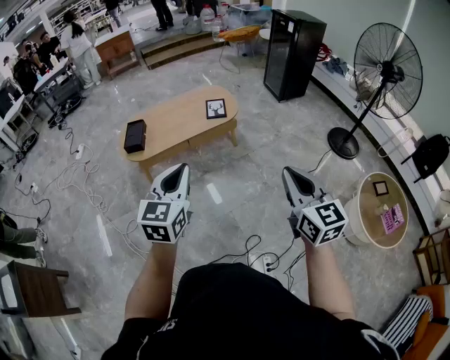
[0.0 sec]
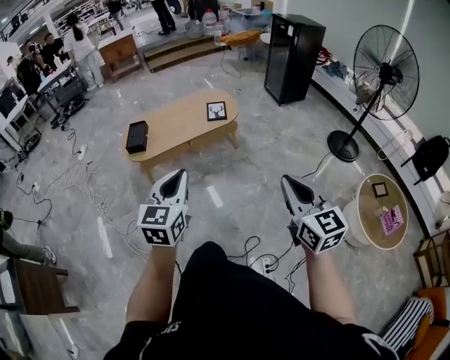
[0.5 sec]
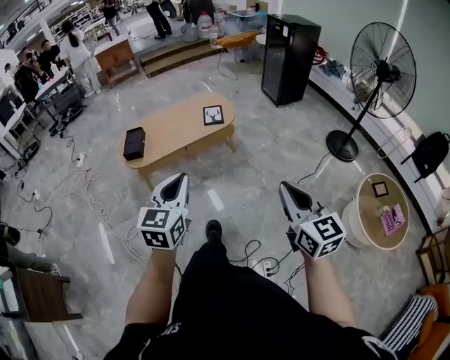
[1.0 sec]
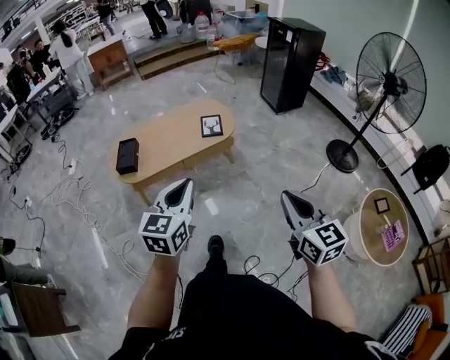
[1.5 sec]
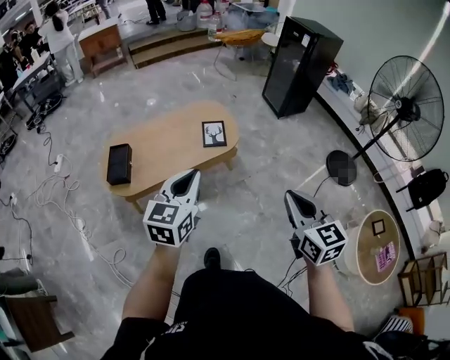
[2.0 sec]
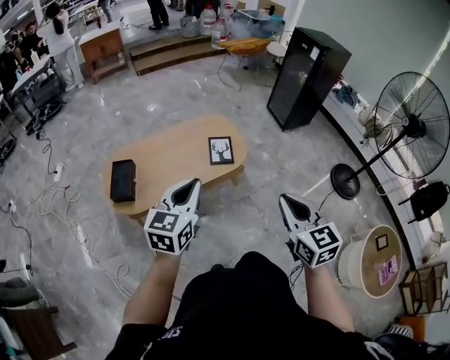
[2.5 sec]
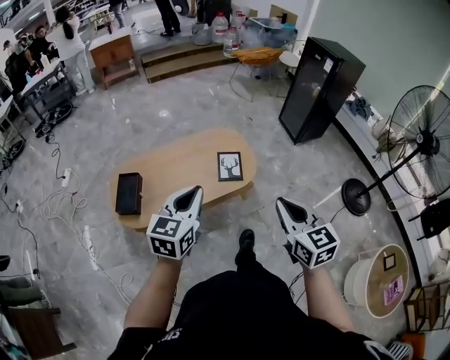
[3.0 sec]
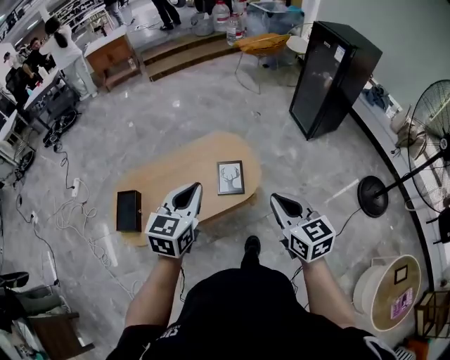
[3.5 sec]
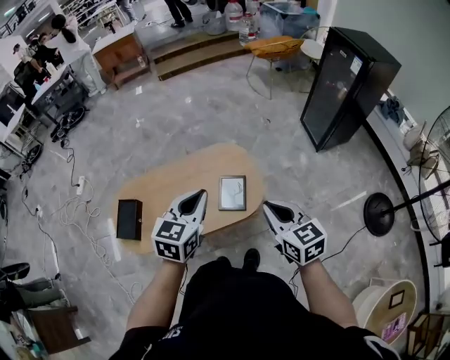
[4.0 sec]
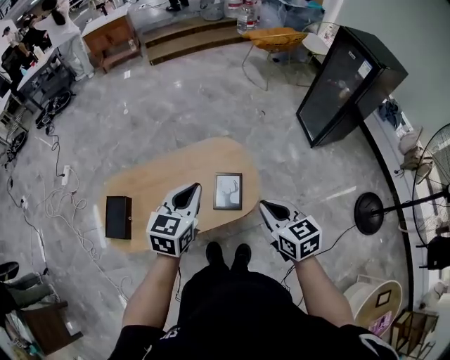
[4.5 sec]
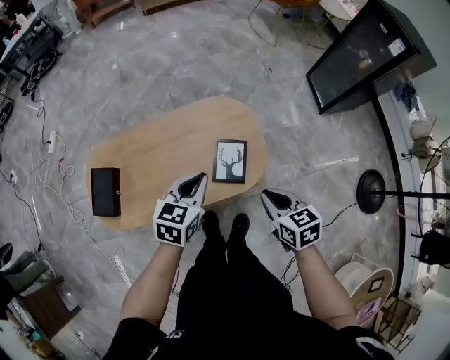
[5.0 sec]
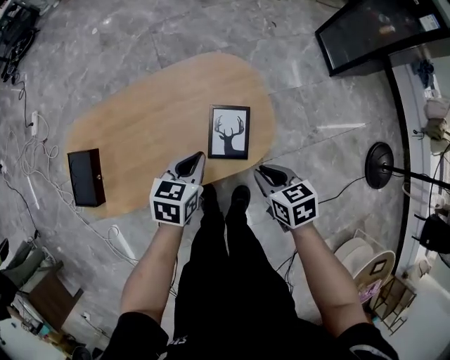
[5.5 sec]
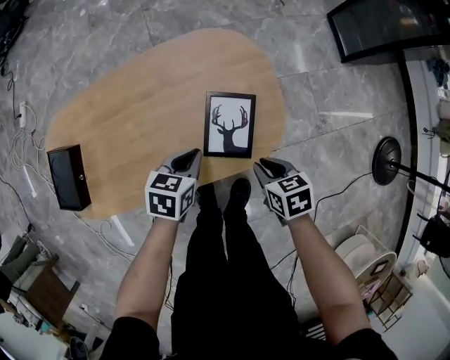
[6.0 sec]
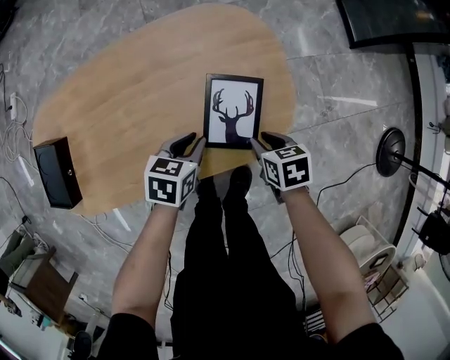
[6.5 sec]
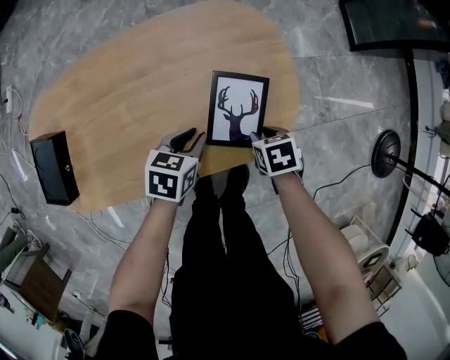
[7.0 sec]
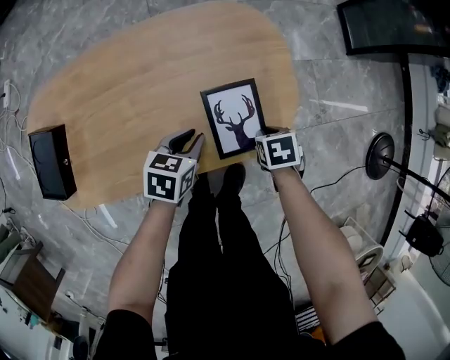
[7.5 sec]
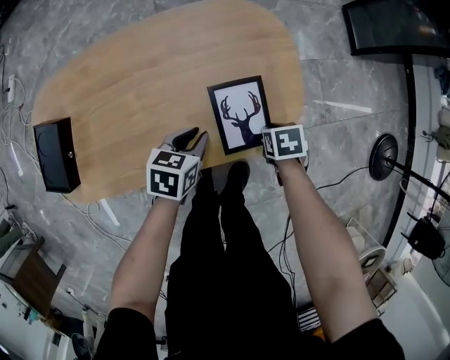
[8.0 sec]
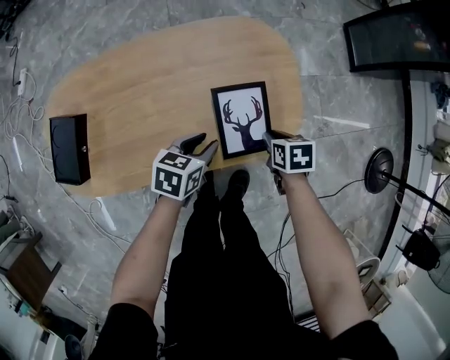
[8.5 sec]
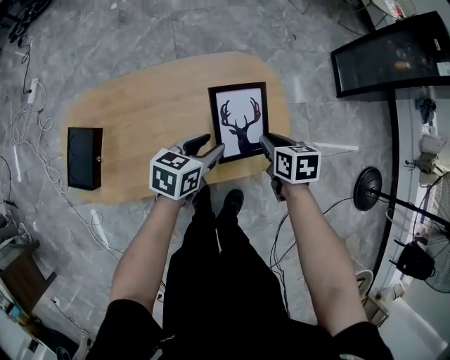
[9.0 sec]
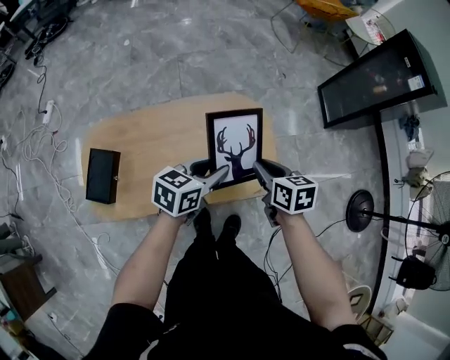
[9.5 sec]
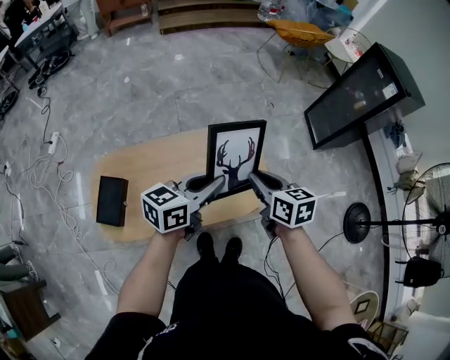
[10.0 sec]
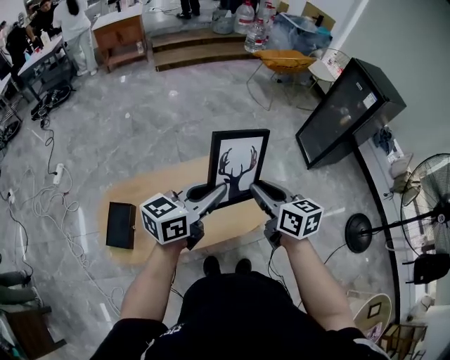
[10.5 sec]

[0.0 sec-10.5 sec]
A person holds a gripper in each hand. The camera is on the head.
0.0 sec to 2.0 sec: Both grippers travel together forward, some 30 cm.
2.0 sec to 4.0 sec: The two grippers travel together, forward, about 40 cm. The right gripper turns by some 20 degrees.
4.0 sec to 6.5 sec: The two grippers go approximately 50 cm downward. The right gripper points its fingers some 40 degrees further downward, and opens; the left gripper changes its angle by some 40 degrees.
6.5 sec to 8.5 sec: The left gripper moves upward, approximately 5 cm.
8.5 sec to 10.5 sec: The two grippers go roughly 50 cm upward. The left gripper tilts its fingers about 40 degrees upward, and closes, while the right gripper angles its fingers upward, by about 50 degrees.

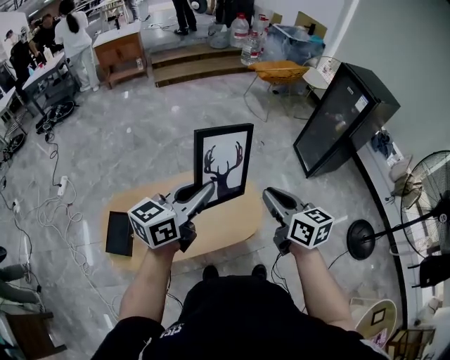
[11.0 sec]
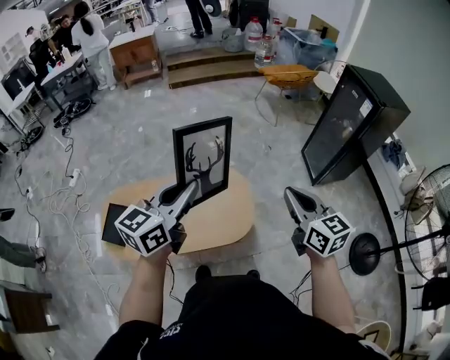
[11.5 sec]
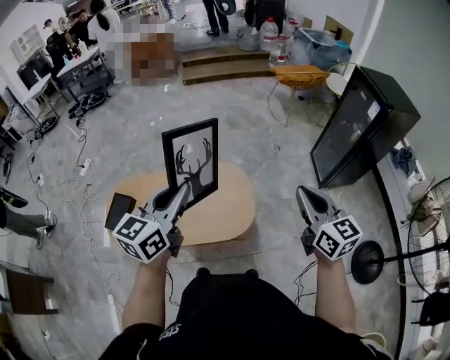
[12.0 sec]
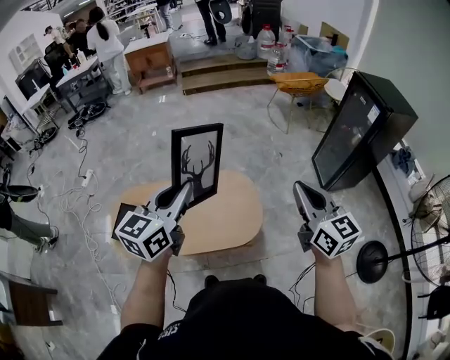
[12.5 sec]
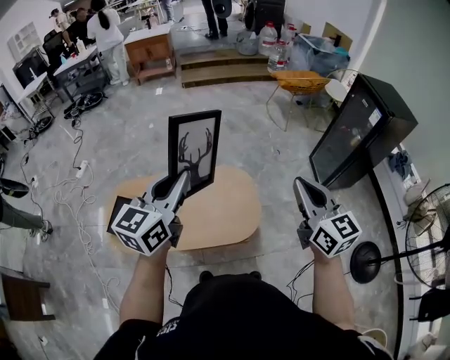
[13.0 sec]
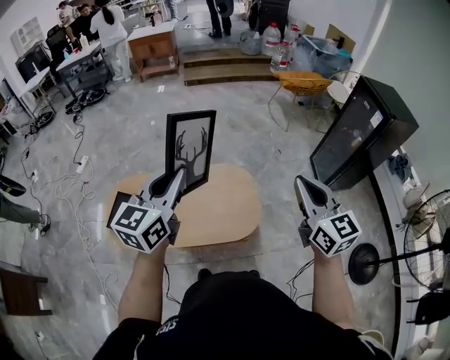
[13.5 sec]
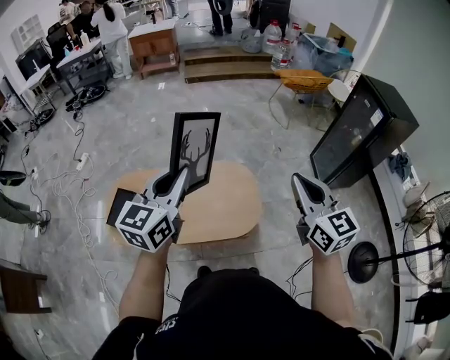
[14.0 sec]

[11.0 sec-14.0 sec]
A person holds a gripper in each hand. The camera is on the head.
11.0 sec to 12.5 sec: The right gripper heads to the right and upward, covering approximately 20 cm, and swivels roughly 20 degrees. Meanwhile the left gripper shifts some 5 cm to the right, and swivels approximately 30 degrees.
12.5 sec to 14.0 sec: The right gripper travels to the left by some 5 cm. The left gripper changes place by some 5 cm.

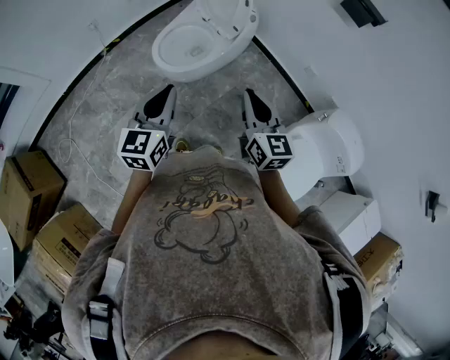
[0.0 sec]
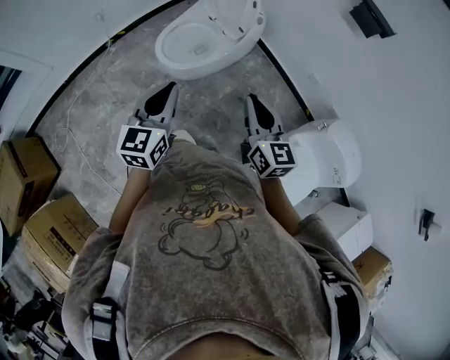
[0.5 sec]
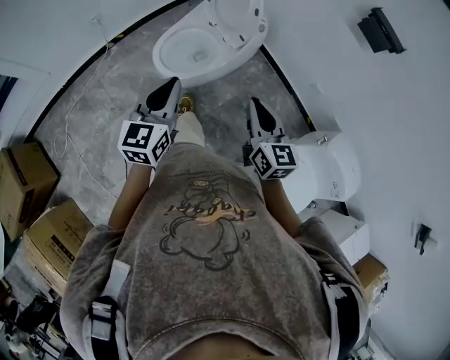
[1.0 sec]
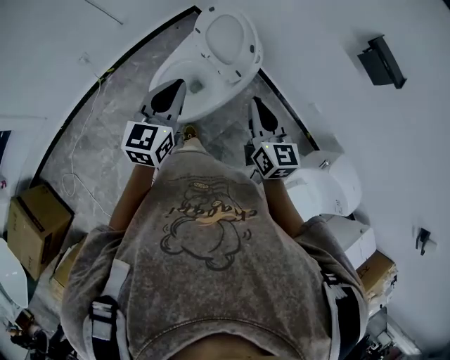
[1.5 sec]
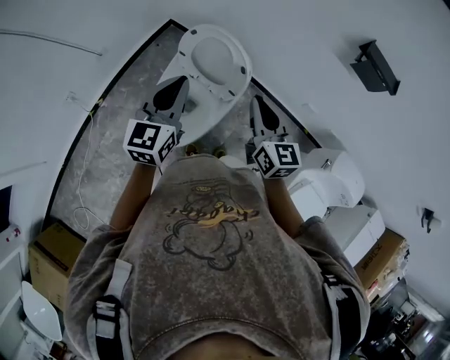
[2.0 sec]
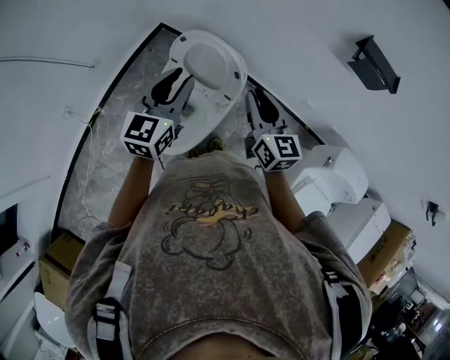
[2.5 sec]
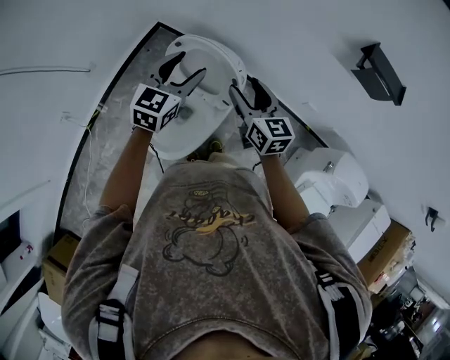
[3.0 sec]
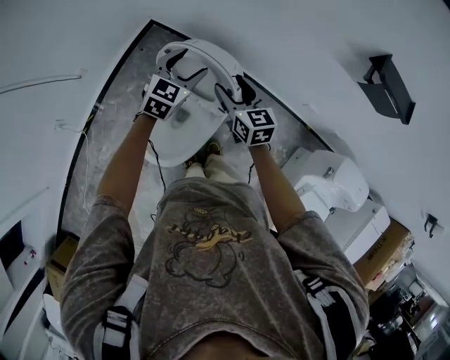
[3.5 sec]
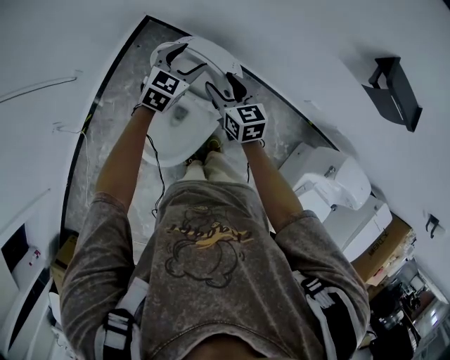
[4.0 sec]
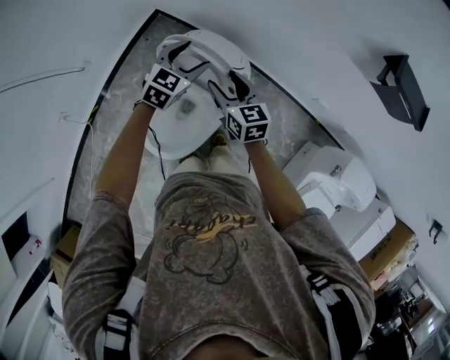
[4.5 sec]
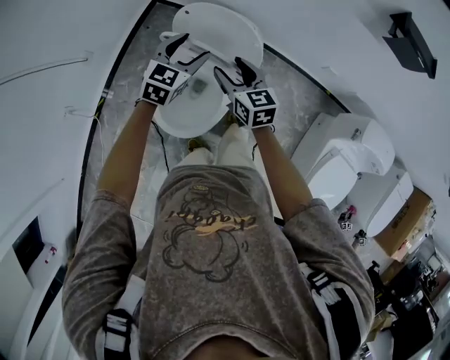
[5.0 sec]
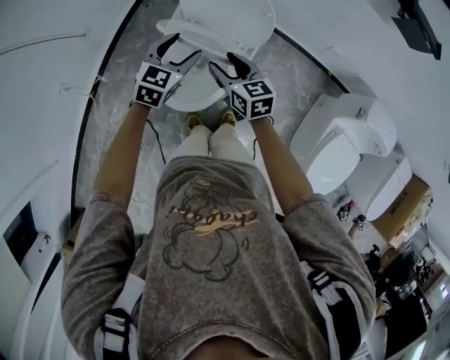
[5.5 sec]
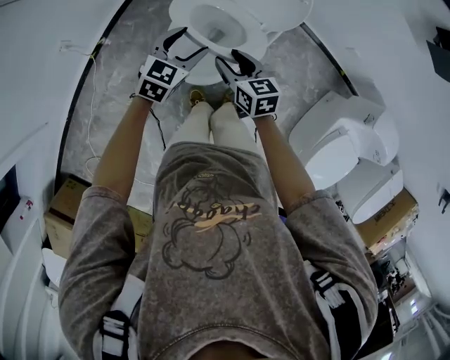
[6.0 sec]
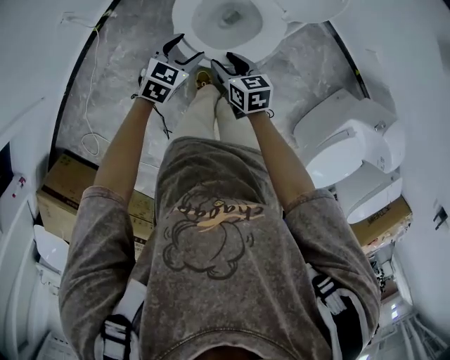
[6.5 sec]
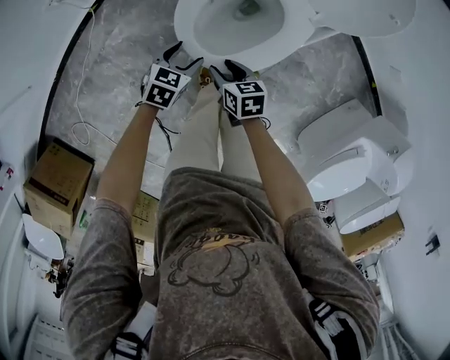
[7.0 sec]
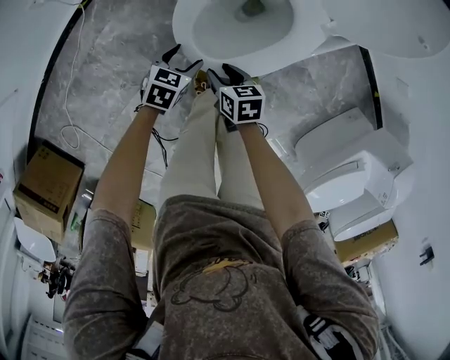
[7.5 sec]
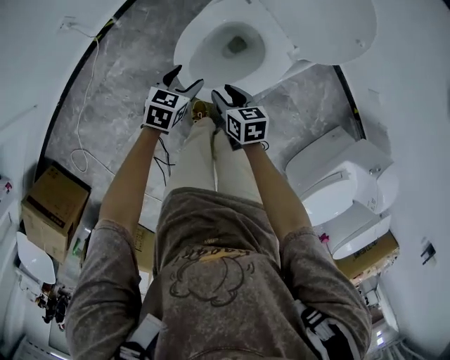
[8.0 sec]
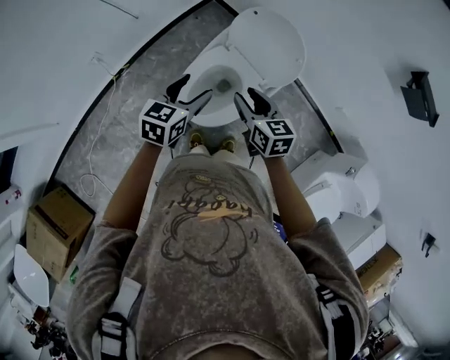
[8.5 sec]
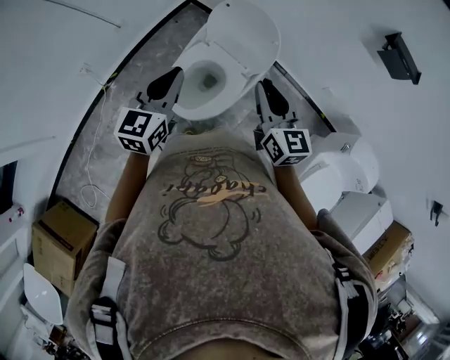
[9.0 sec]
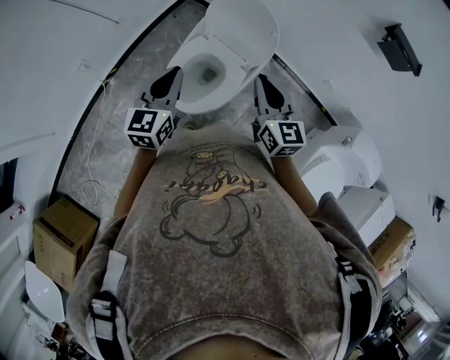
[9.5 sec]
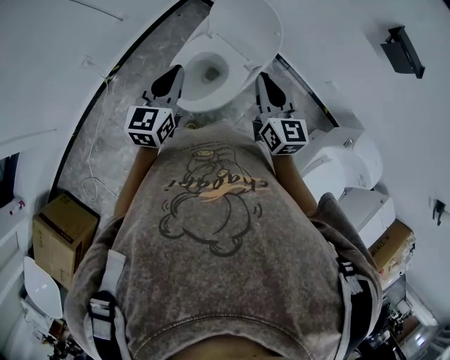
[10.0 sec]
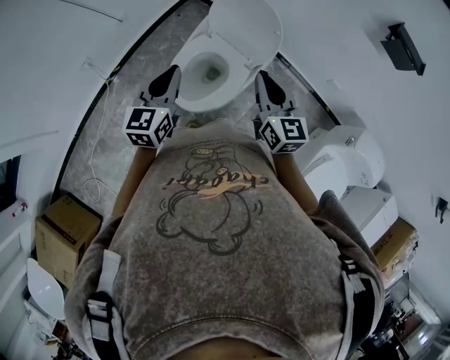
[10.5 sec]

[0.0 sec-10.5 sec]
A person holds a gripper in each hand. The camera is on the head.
0.0 sec to 2.0 sec: The two grippers go some 40 cm forward.
2.0 sec to 4.0 sec: The two grippers go about 30 cm forward and downward. The left gripper swivels about 30 degrees, and opens. The right gripper opens.
4.0 sec to 6.5 sec: Both grippers move backward, to the left and downward, approximately 40 cm. The right gripper changes its angle by about 30 degrees. Meanwhile the left gripper changes its angle by about 20 degrees.
6.5 sec to 8.5 sec: The grippers both shift upward by about 20 cm. The left gripper rotates some 20 degrees.
8.5 sec to 10.5 sec: The right gripper is displaced upward and to the right by roughly 15 cm, turns by some 20 degrees, and closes its fingers, while the left gripper goes about 5 cm upward, and closes.

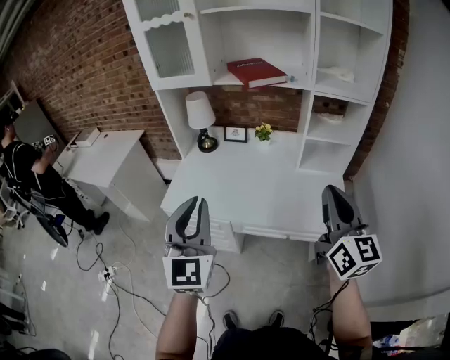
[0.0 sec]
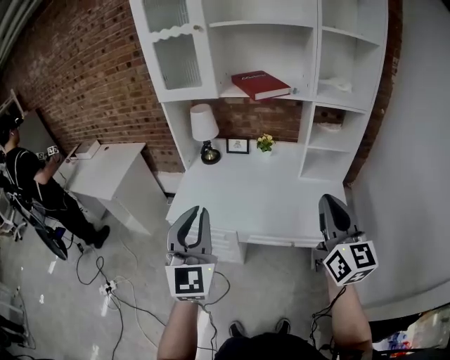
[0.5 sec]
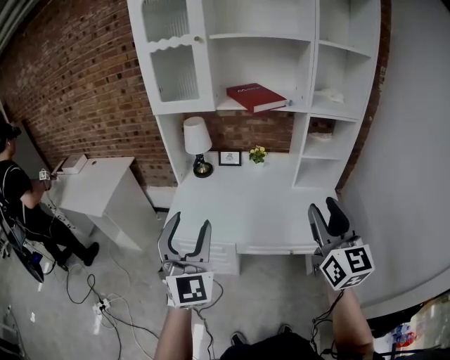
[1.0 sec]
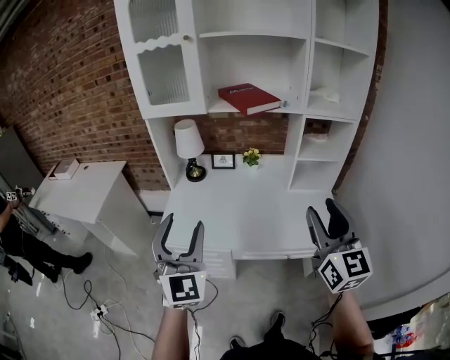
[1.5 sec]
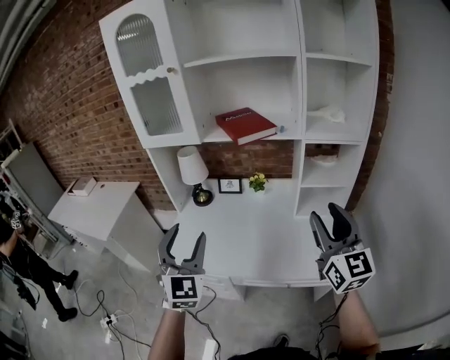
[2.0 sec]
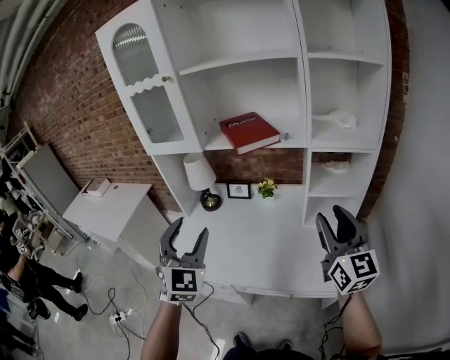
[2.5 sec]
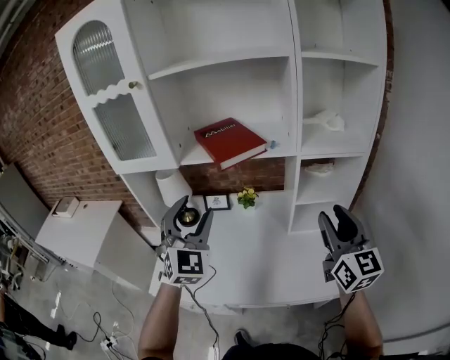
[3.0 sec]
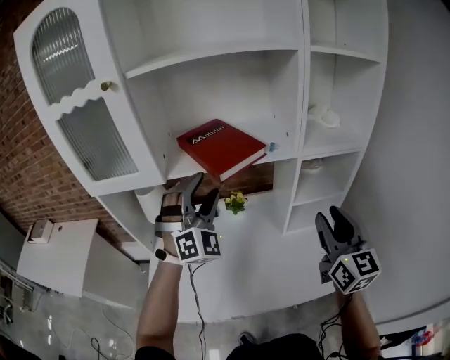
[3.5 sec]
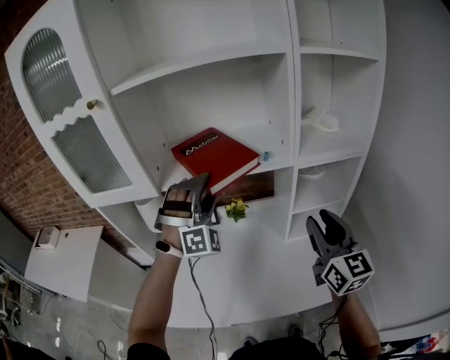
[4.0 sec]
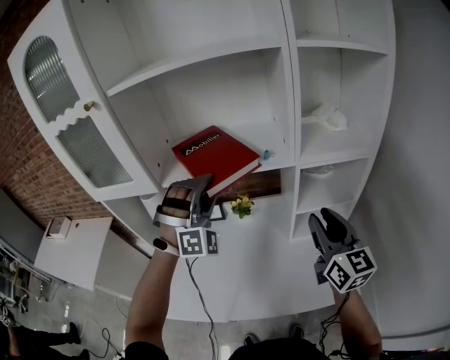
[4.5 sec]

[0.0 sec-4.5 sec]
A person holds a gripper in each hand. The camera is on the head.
0.0 sec to 2.0 sec: Both grippers travel together forward, some 10 cm. The left gripper opens its fingers. Meanwhile the right gripper opens up.
2.0 sec to 4.5 sec: The left gripper travels forward by roughly 35 cm, and twists roughly 60 degrees clockwise, seen from behind, while the right gripper moves forward, roughly 20 cm.
